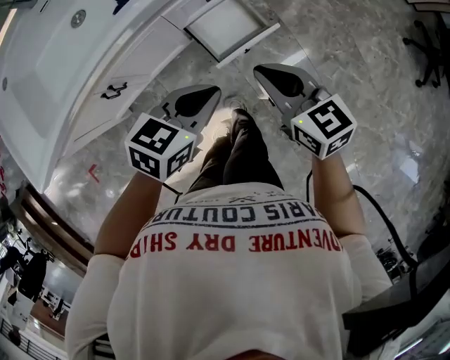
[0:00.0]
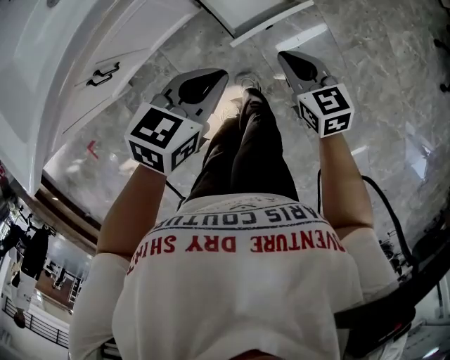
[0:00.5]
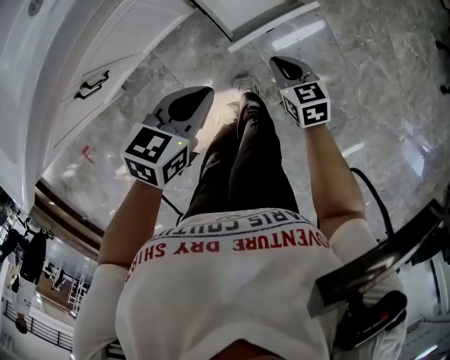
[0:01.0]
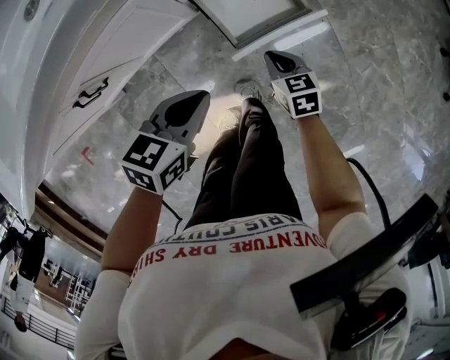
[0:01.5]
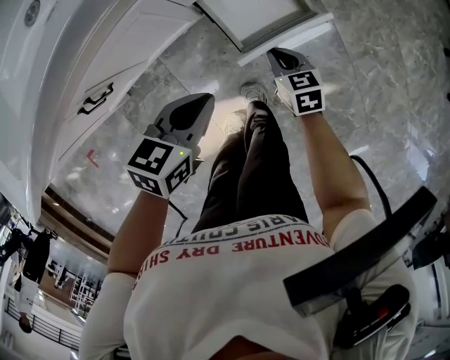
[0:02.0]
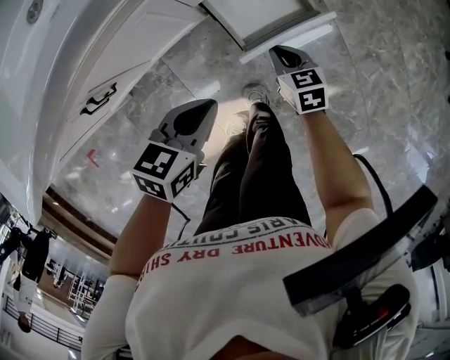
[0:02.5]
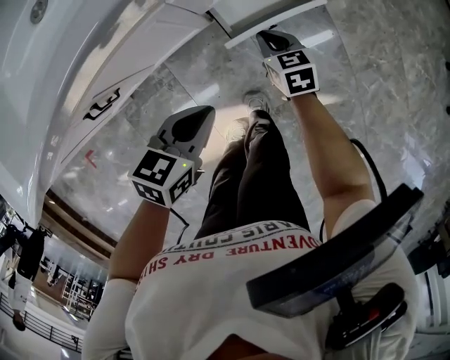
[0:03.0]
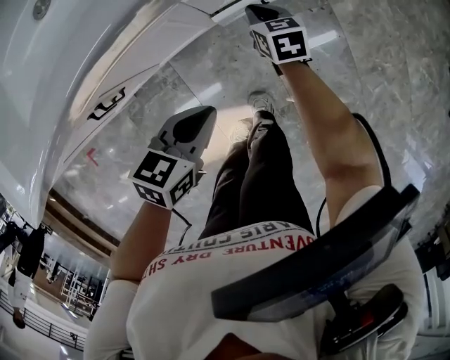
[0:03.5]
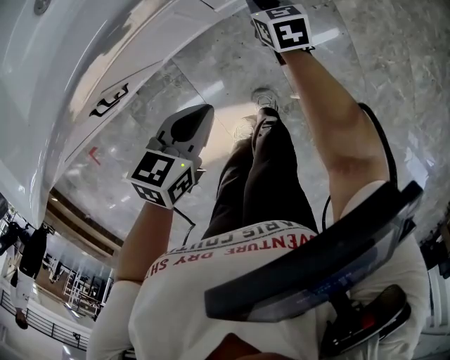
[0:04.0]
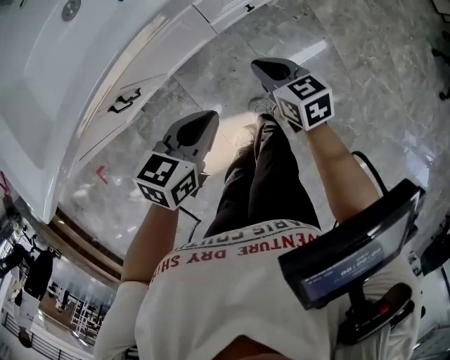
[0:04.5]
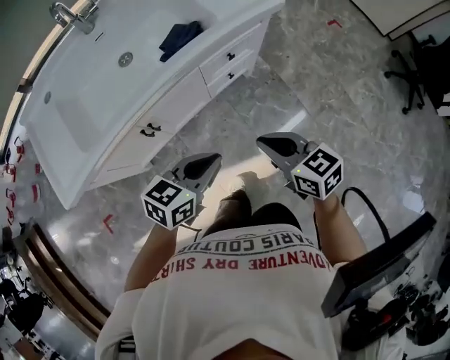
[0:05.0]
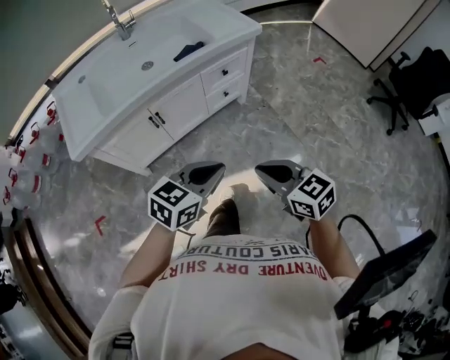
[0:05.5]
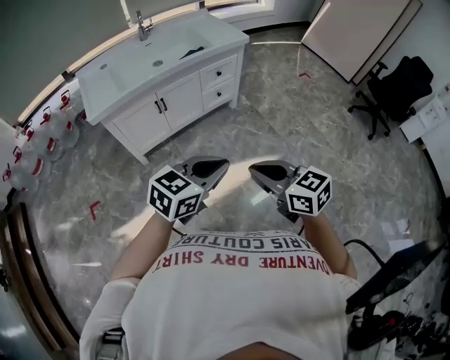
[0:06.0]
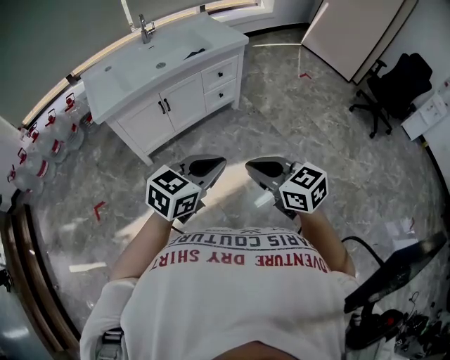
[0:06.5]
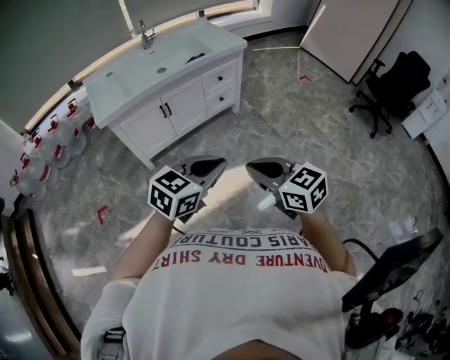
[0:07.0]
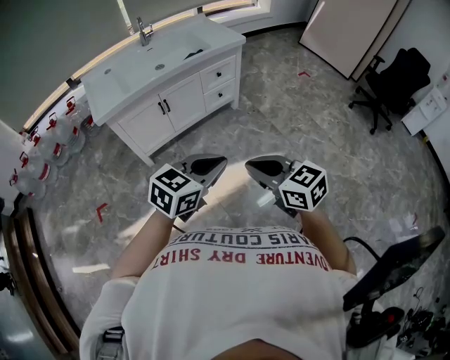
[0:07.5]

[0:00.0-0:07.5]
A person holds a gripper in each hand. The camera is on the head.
0.0 to 2.0 s: The left gripper heads downward, covering some 20 cm; the right gripper travels downward by approximately 40 cm, and turns by roughly 20 degrees.
2.0 to 4.0 s: The right gripper moves forward and to the left, about 20 cm. Meanwhile the left gripper travels to the left by about 5 cm.
4.0 to 5.5 s: The right gripper shifts approximately 80 cm backward and upward, and turns by roughly 20 degrees. The left gripper travels upward and backward by about 50 cm, and rotates some 30 degrees.
5.5 to 7.5 s: The two grippers go approximately 30 cm backward and upward.

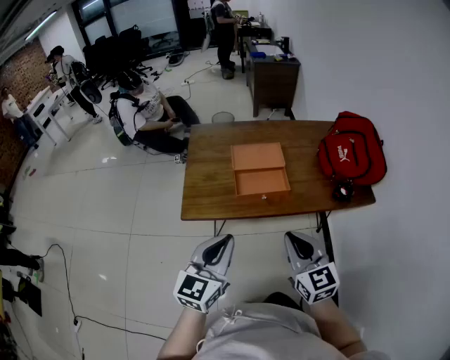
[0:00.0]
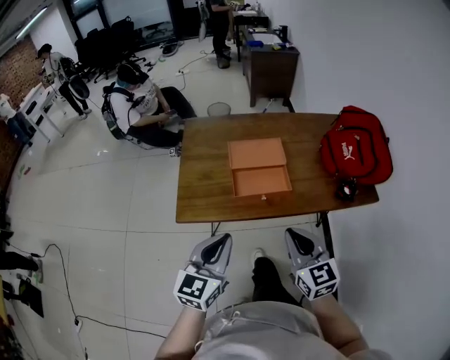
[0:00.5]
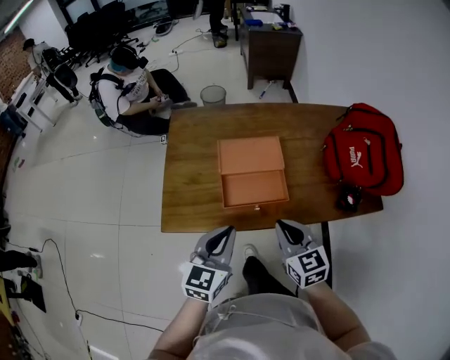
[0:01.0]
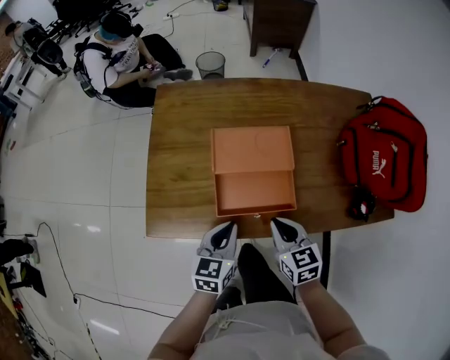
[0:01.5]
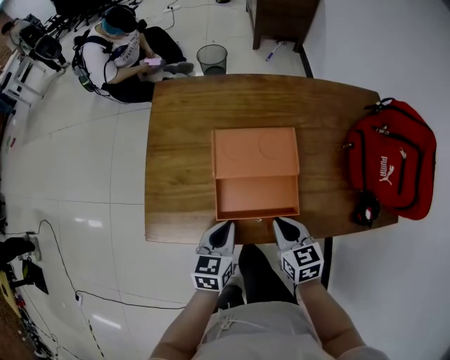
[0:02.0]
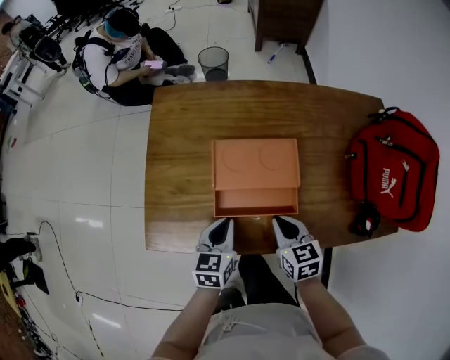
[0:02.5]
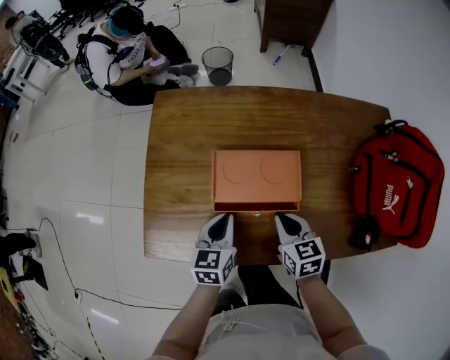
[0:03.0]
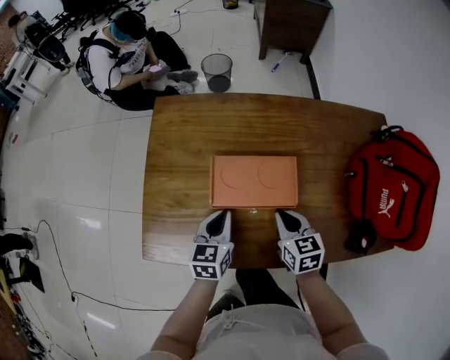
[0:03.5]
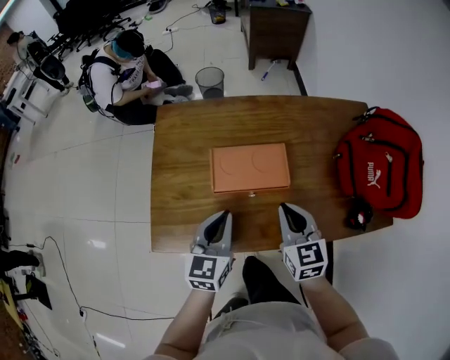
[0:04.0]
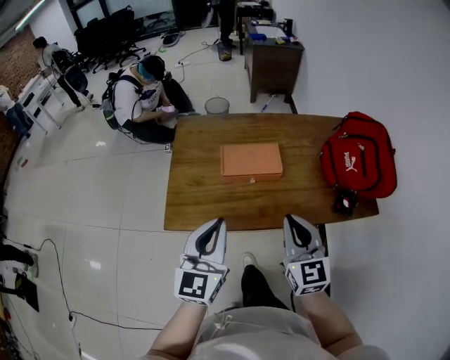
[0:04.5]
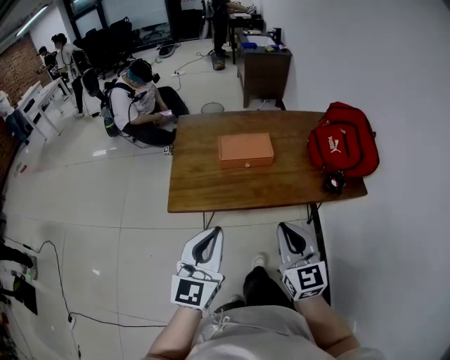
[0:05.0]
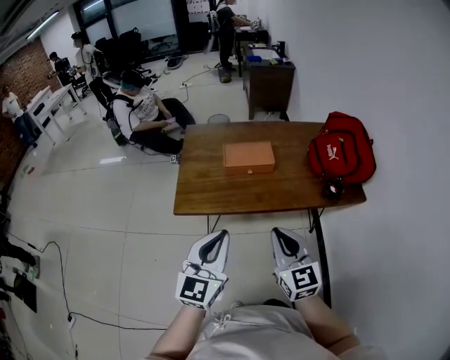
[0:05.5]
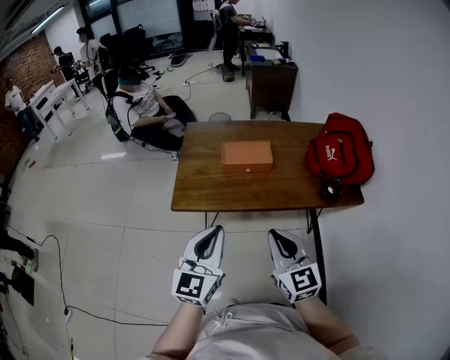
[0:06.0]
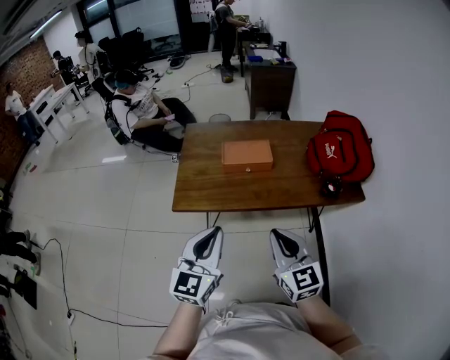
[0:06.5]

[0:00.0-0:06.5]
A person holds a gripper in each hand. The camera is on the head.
0.0 to 2.0 s: The left gripper moves downward and forward, some 35 cm, and turns by about 30 degrees. Meanwhile the right gripper moves forward and downward, approximately 30 cm, and turns by roughly 30 degrees.
2.0 to 4.5 s: The grippers both shift upward and backward by about 25 cm. The left gripper angles its fingers upward, by some 30 degrees, while the right gripper changes its angle by roughly 30 degrees.
4.5 to 6.5 s: Both grippers move backward, about 15 cm.

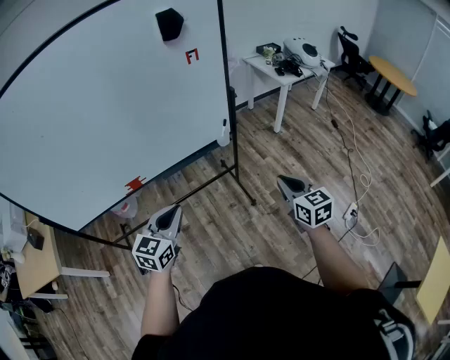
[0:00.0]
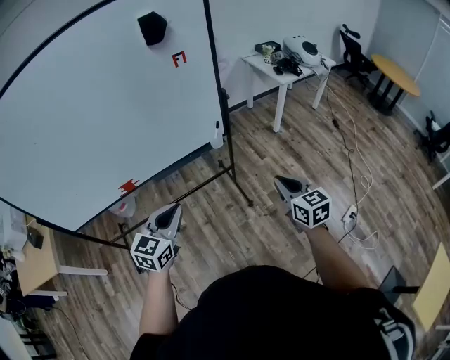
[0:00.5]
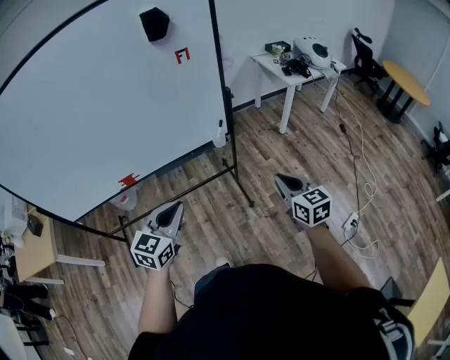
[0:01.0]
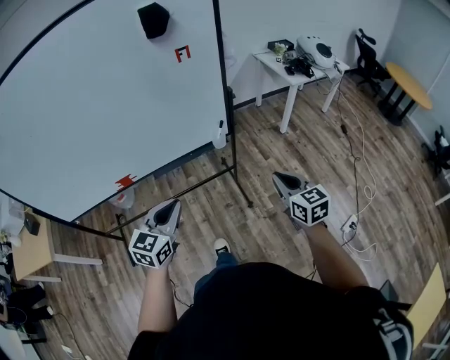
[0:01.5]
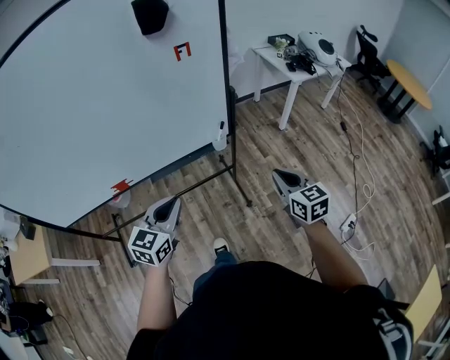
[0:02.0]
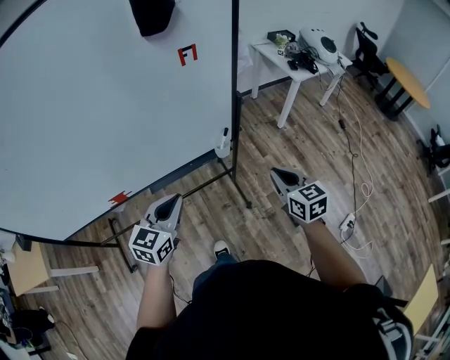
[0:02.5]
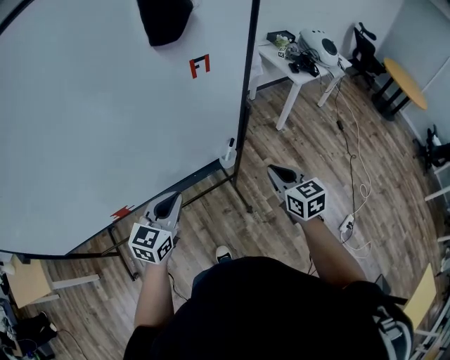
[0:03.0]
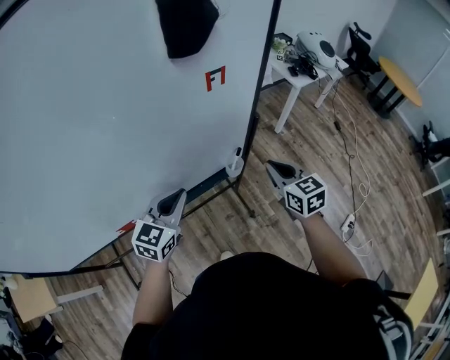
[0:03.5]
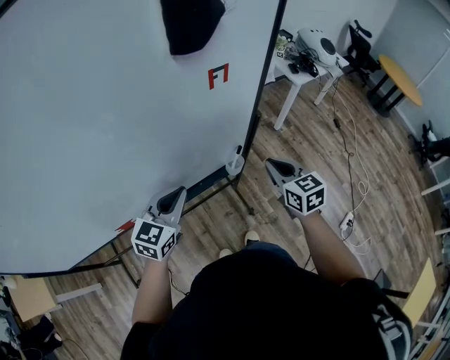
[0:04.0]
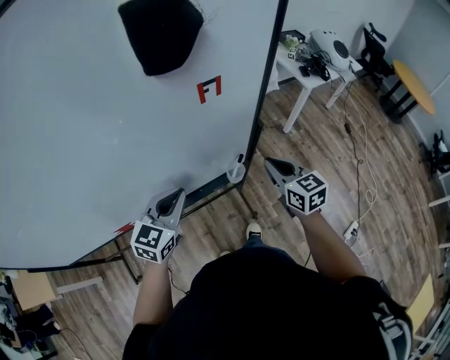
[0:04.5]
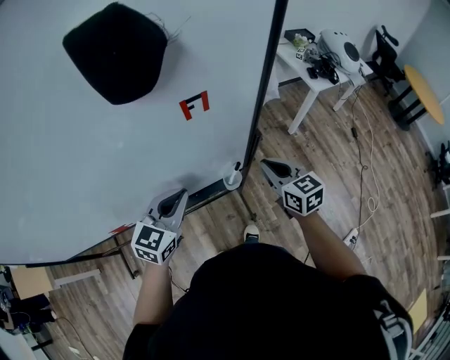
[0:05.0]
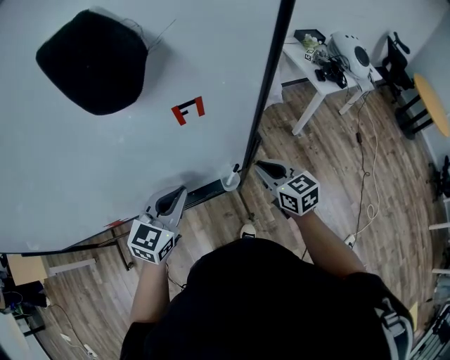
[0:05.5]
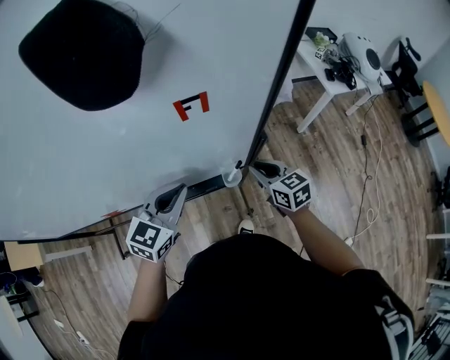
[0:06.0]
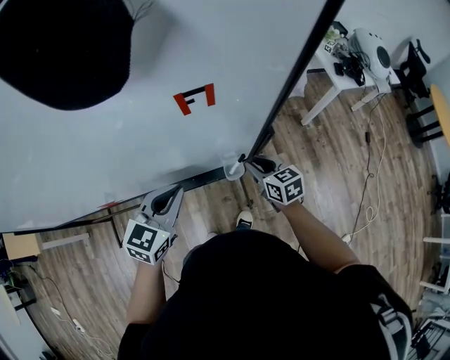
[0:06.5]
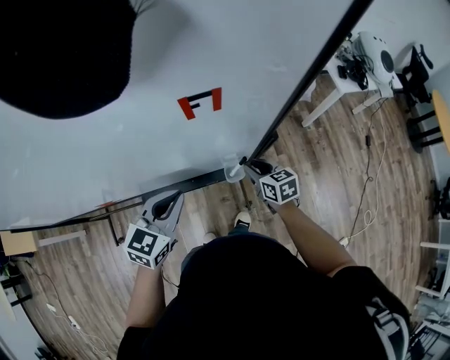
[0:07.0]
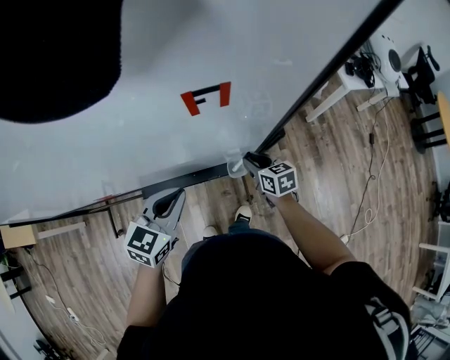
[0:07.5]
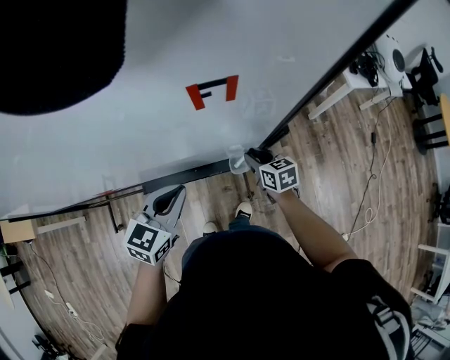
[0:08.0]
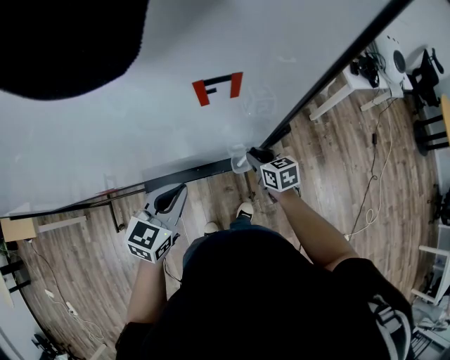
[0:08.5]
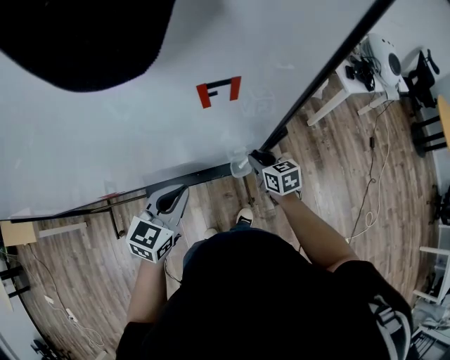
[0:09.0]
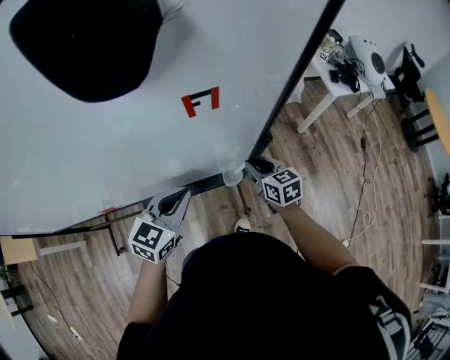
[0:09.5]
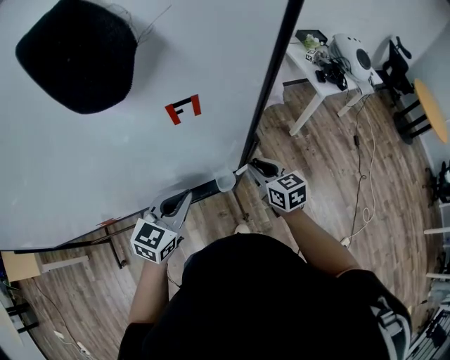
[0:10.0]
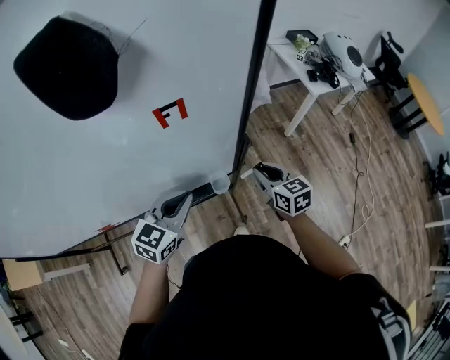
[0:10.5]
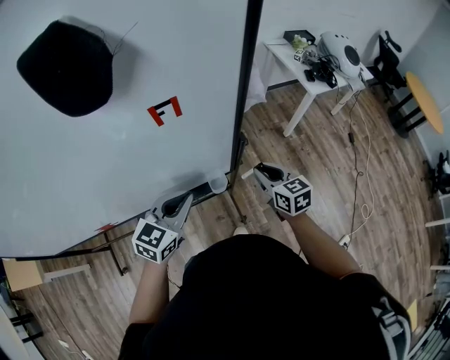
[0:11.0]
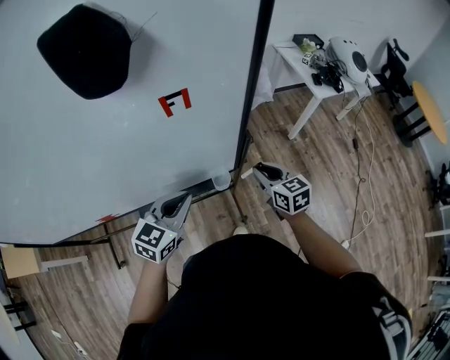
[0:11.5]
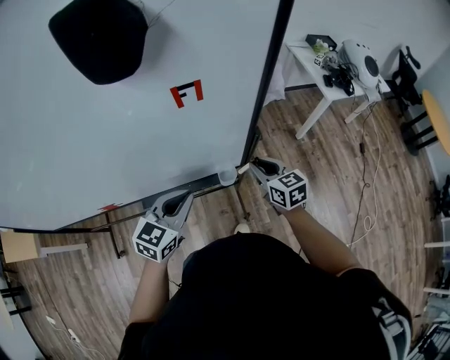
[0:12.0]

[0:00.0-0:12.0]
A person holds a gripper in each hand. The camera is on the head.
0.0 to 2.0 s: The right gripper heads forward, covering approximately 15 cm. The left gripper travels forward and to the right by approximately 15 cm.
2.0 to 4.0 s: Both grippers travel together forward and to the left, roughly 25 cm.
4.0 to 6.0 s: The right gripper shifts some 15 cm forward and downward, and turns by roughly 20 degrees. The left gripper travels to the right and forward by some 10 cm.
6.0 to 8.0 s: The left gripper is displaced downward by roughly 5 cm. Meanwhile the right gripper is displaced downward by about 15 cm.
8.0 to 10.0 s: The right gripper heads upward, covering about 15 cm, while the left gripper moves about 5 cm.
10.0 to 12.0 s: The grippers move only a little.

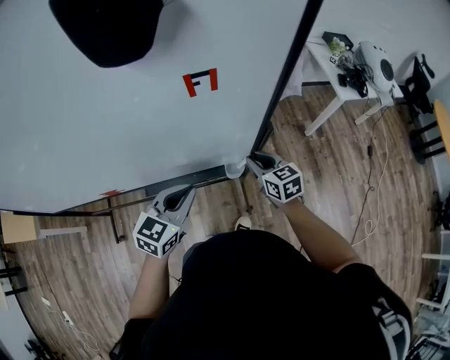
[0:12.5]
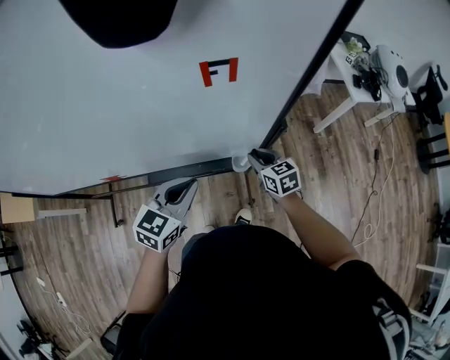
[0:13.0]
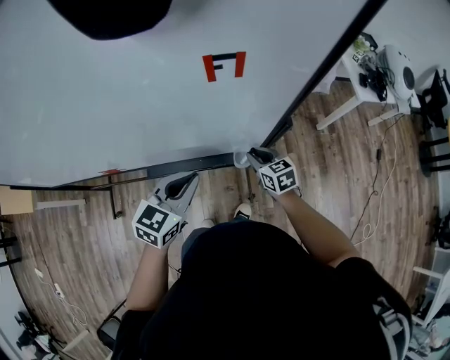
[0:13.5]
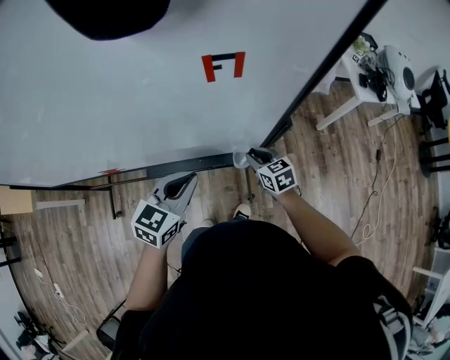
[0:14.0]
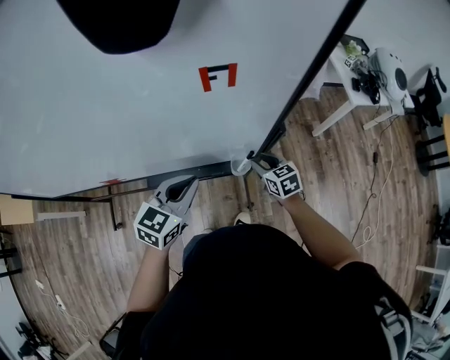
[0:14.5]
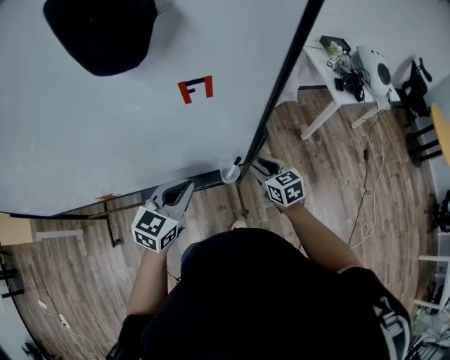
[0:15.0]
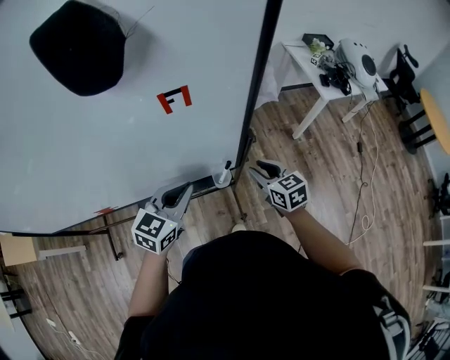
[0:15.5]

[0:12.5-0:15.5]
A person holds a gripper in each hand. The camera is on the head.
12.5 to 14.0 s: The right gripper heads downward, covering some 10 cm.
14.0 to 15.5 s: The right gripper is displaced upward and to the right by roughly 15 cm; the left gripper shifts by roughly 5 cm.
